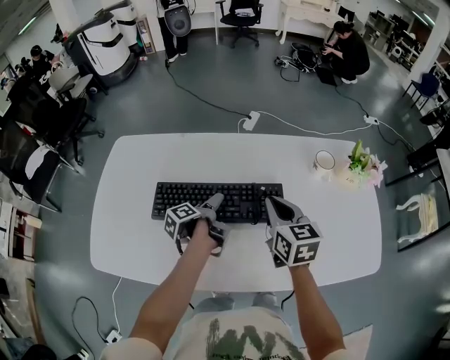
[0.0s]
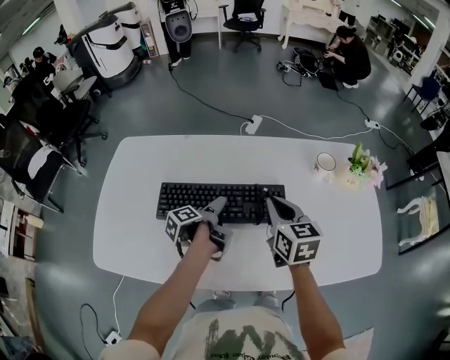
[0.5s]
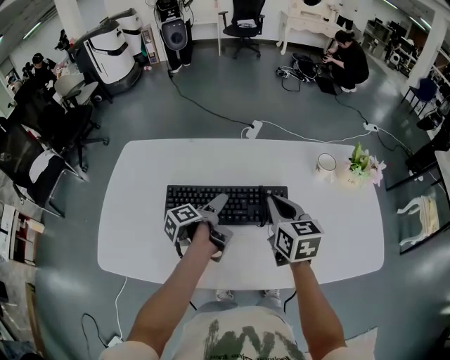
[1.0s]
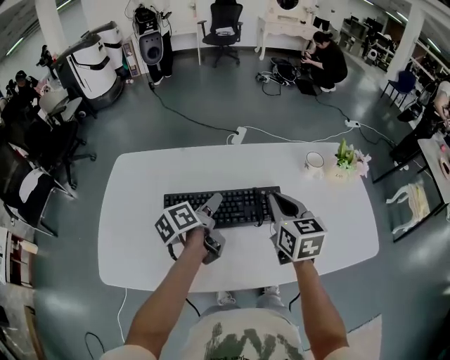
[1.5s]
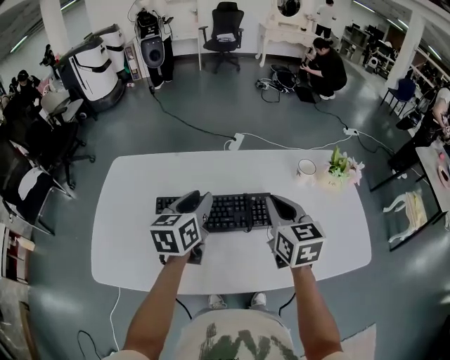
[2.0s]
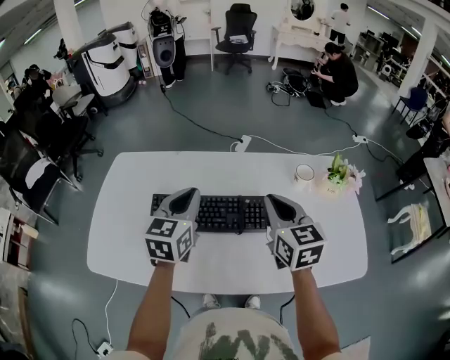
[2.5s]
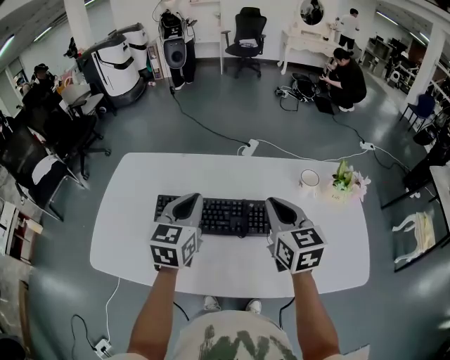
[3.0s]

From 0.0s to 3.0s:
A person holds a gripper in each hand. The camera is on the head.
From 0.0s to 1.5s: The right gripper is displaced upward by about 5 cm.
From 1.5s to 3.0s: The right gripper moves approximately 5 cm.

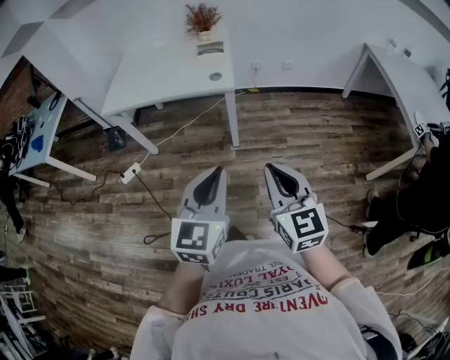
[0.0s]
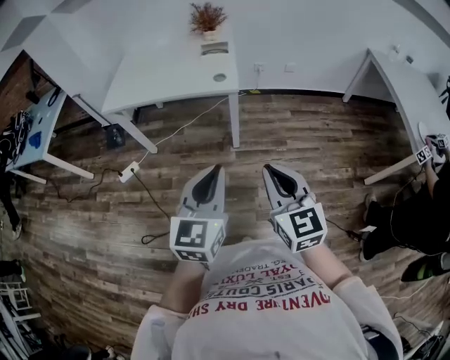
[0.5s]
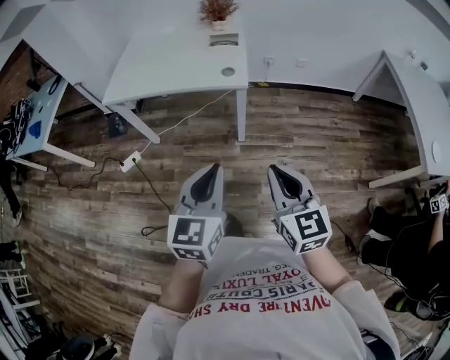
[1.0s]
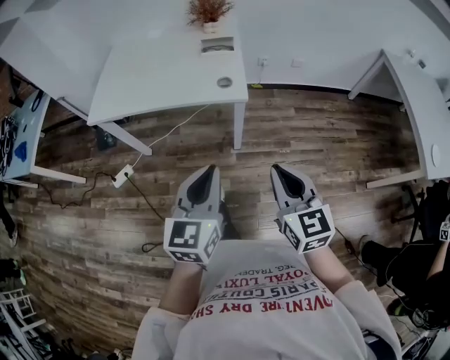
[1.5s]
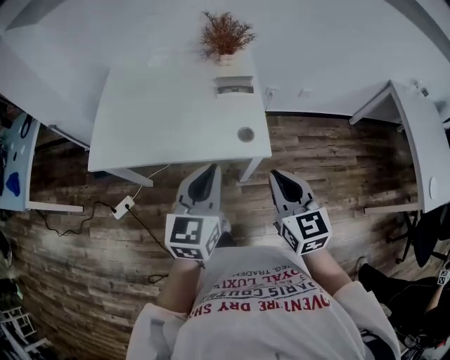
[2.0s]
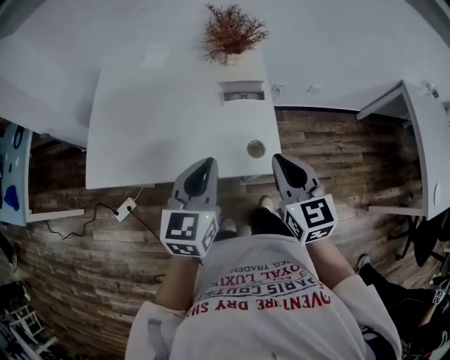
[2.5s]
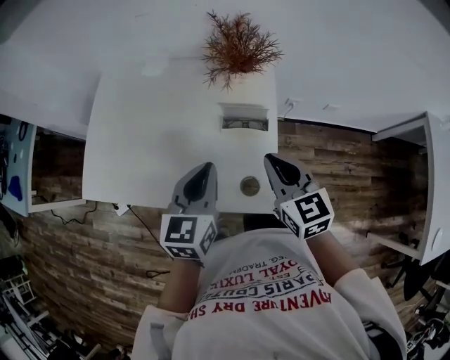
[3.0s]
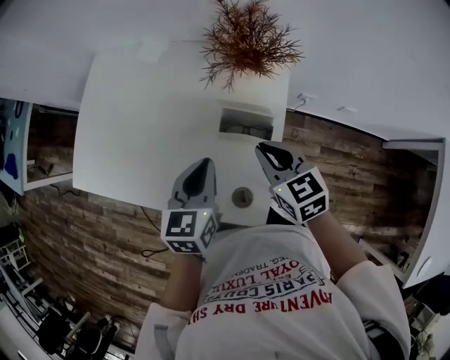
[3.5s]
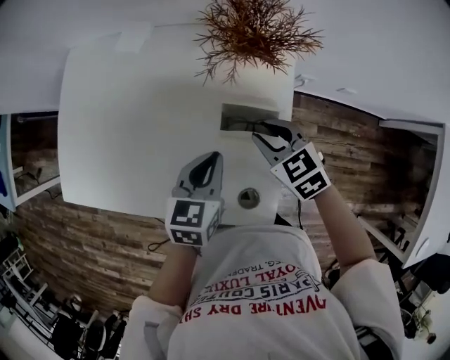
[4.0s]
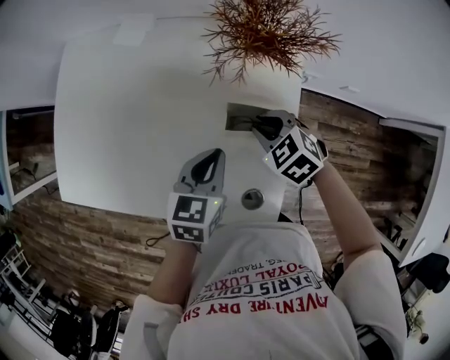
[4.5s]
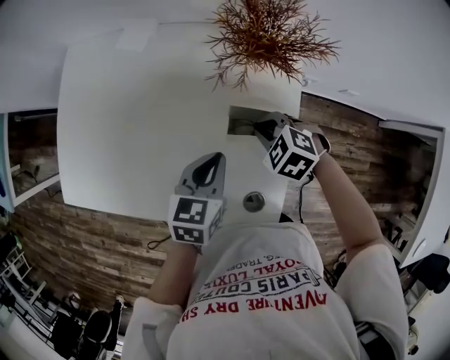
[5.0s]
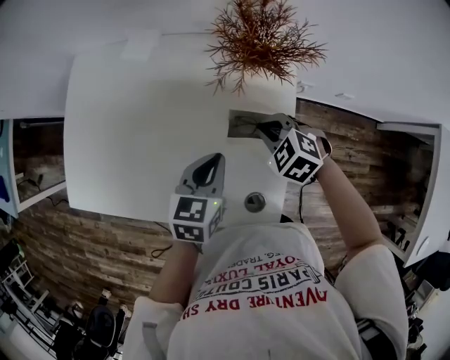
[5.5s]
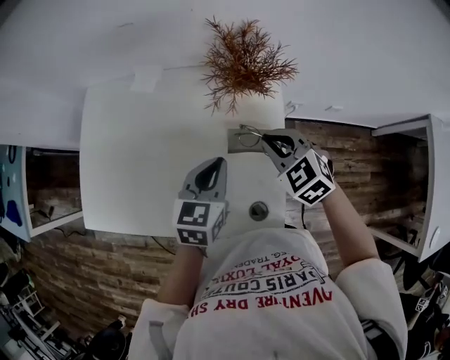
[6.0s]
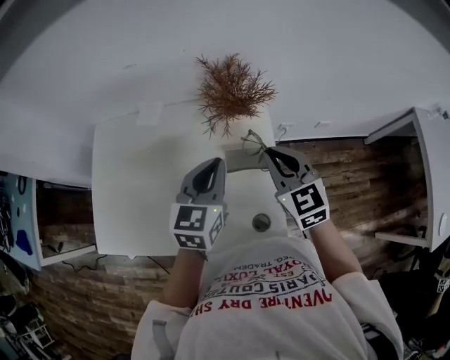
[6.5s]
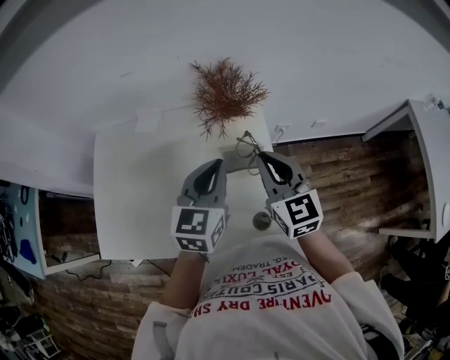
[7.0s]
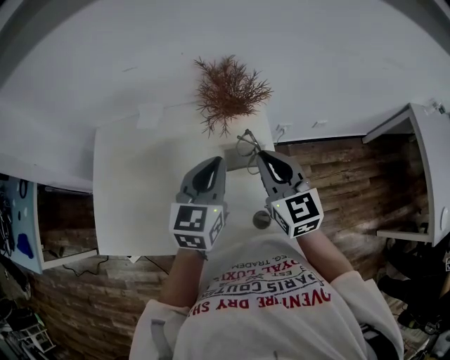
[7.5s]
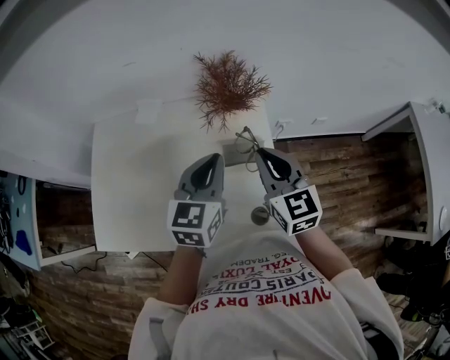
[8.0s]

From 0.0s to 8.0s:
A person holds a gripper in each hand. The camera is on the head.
From 0.0s to 2.0s: The pair of grippers is taken forward, roughly 40 cm.
From 2.0s to 4.0s: The grippers both shift forward and downward by approximately 40 cm. The right gripper changes its angle by some 40 degrees, and opens up. The left gripper rotates some 30 degrees.
From 4.0s to 6.0s: Both grippers travel together upward, about 10 cm. The right gripper closes.
From 6.0s to 8.0s: The left gripper heads upward, covering about 10 cm; the right gripper travels upward and backward by about 10 cm, and changes its angle by some 40 degrees.

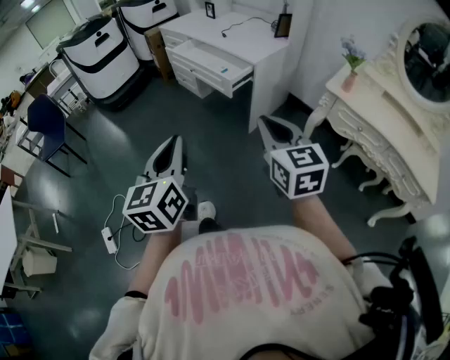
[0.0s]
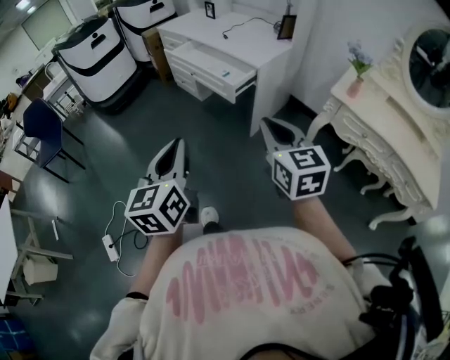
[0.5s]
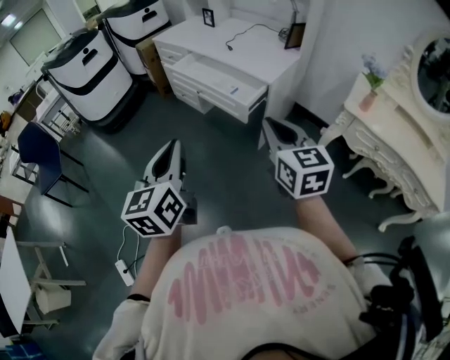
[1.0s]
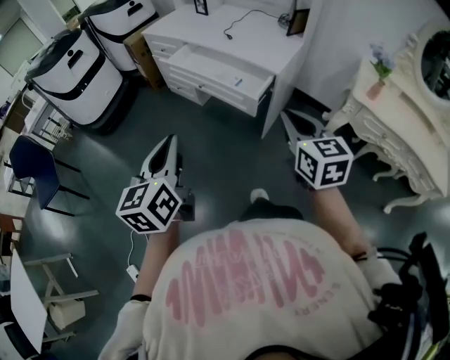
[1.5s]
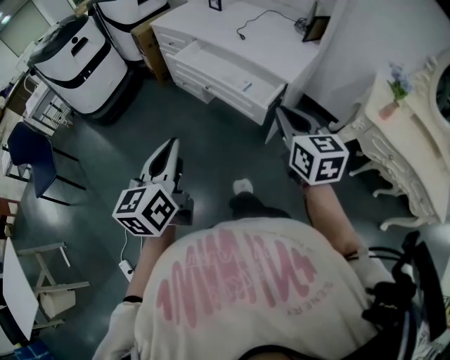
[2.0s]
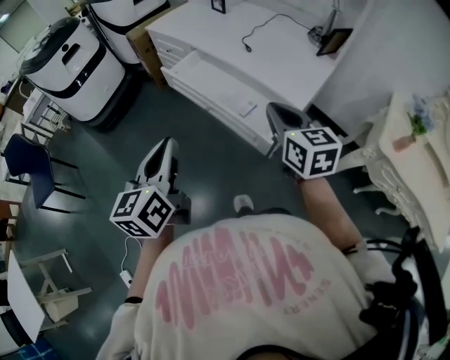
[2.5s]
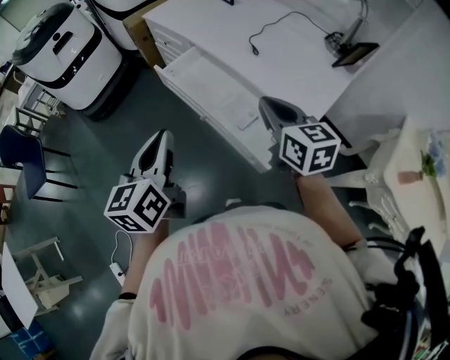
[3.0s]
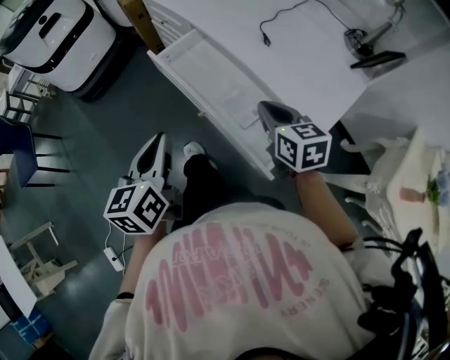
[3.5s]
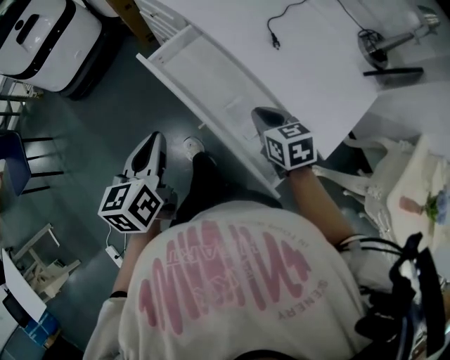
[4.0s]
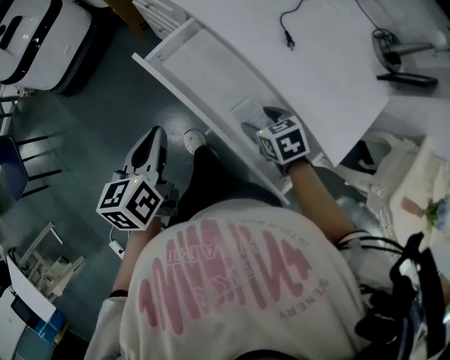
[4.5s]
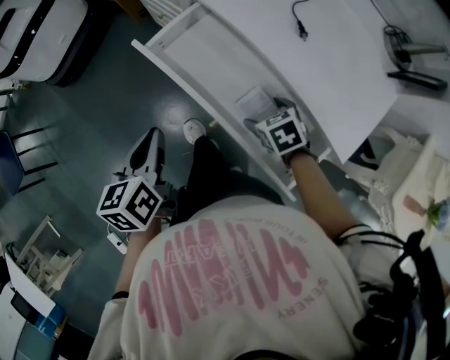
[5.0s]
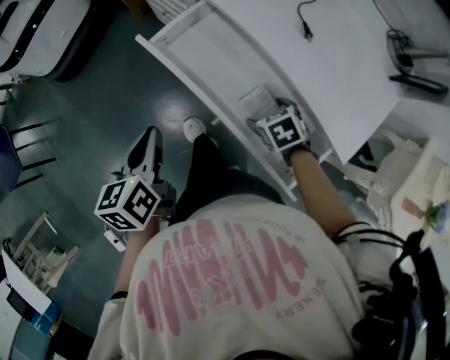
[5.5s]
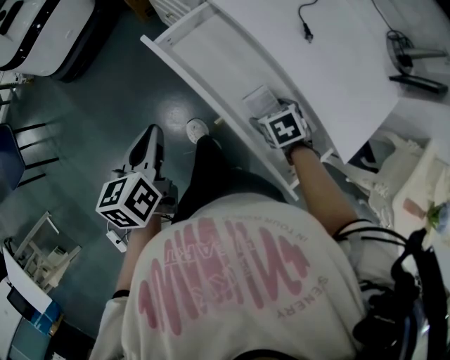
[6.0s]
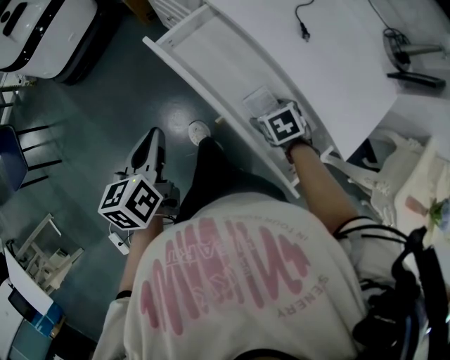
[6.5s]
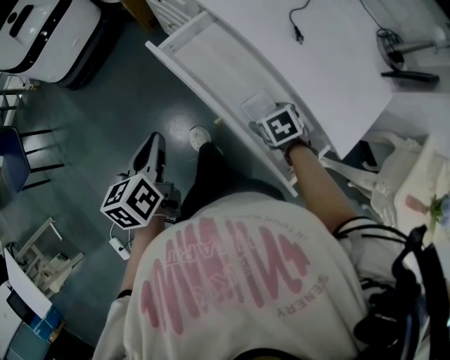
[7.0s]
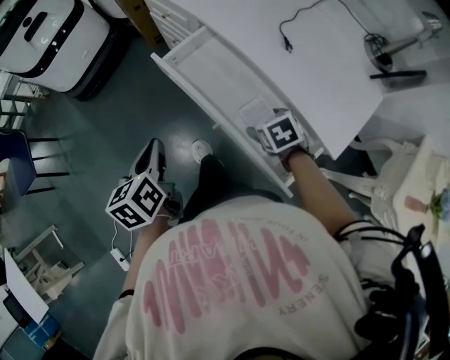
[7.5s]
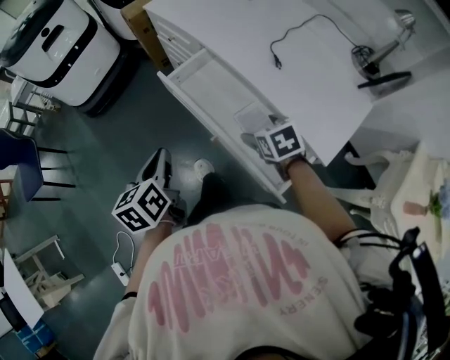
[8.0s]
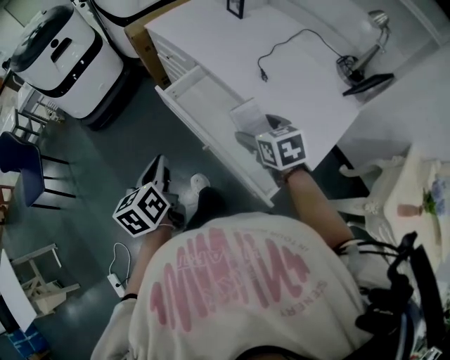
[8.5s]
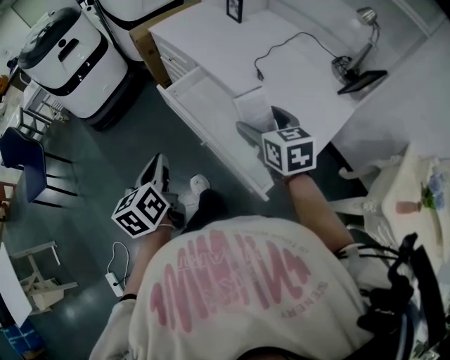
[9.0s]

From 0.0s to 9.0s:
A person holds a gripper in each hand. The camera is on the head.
From 0.0s to 2.0s: The left gripper moves forward and to the left, roughly 35 cm; the right gripper heads forward, covering about 30 cm.
From 2.0s to 4.5s: Both grippers travel together forward and downward, approximately 50 cm. The left gripper swivels roughly 30 degrees, while the right gripper angles its fingers downward, by about 40 degrees, and opens up.
From 4.5s to 7.0s: The left gripper changes place by some 5 cm.
From 7.0s to 9.0s: The right gripper shifts roughly 25 cm upward, and points its fingers approximately 40 degrees further upward. The left gripper goes roughly 10 cm upward.

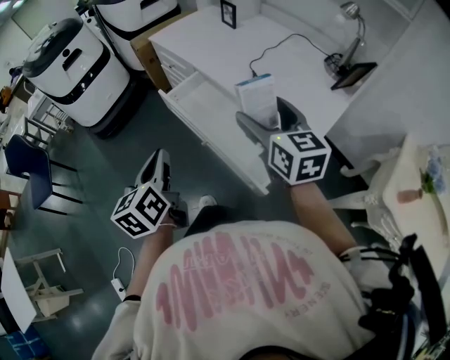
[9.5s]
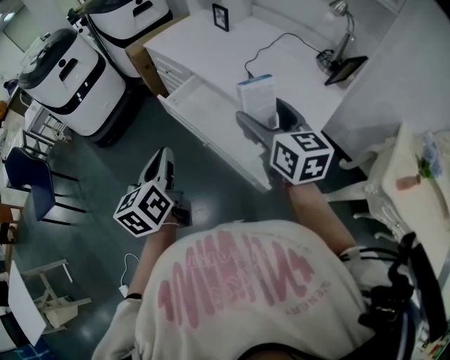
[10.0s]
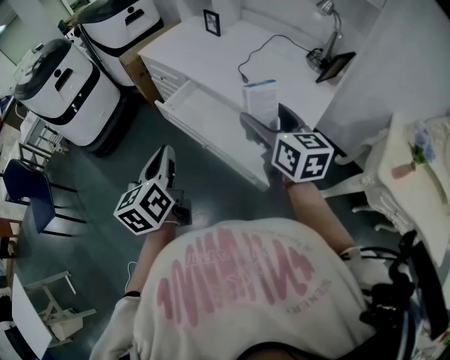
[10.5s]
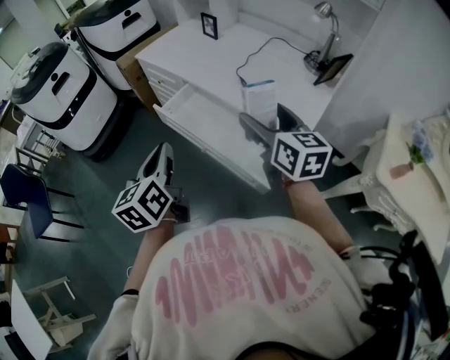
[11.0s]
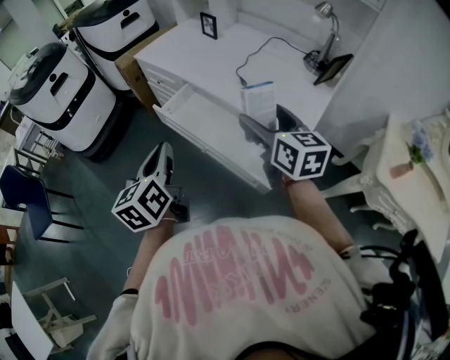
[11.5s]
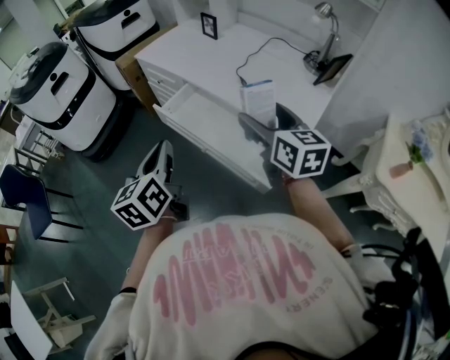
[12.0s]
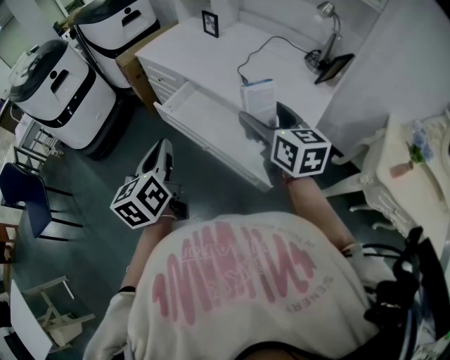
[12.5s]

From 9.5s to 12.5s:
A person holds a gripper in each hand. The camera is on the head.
From 9.5s to 11.0s: The grippers move only a little.
From 11.0s to 12.5s: Both grippers stay about where they are.

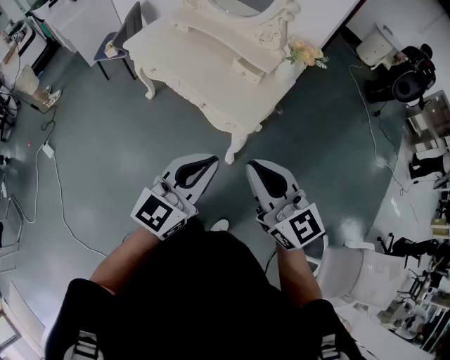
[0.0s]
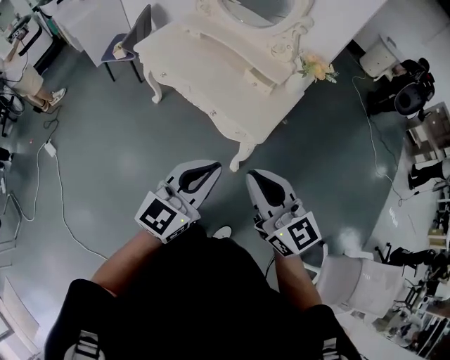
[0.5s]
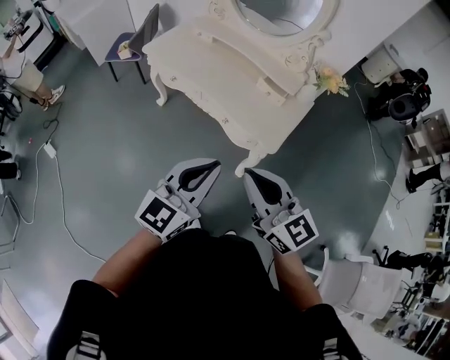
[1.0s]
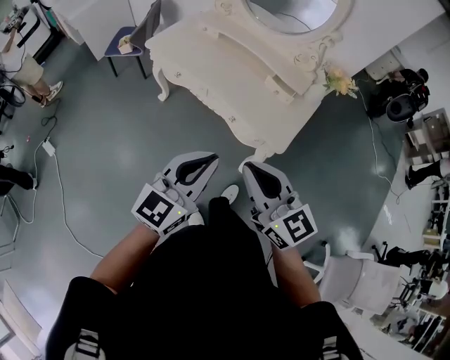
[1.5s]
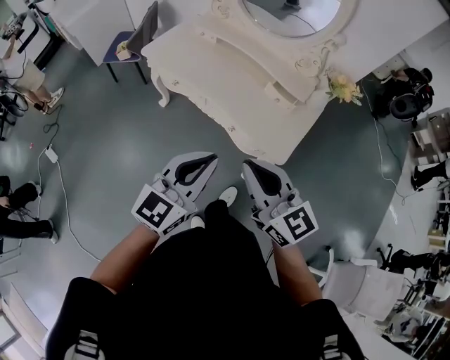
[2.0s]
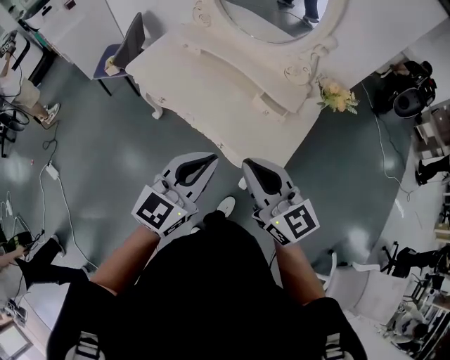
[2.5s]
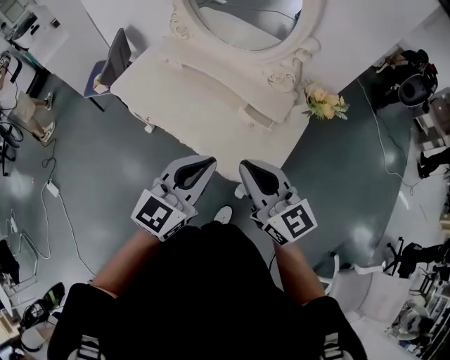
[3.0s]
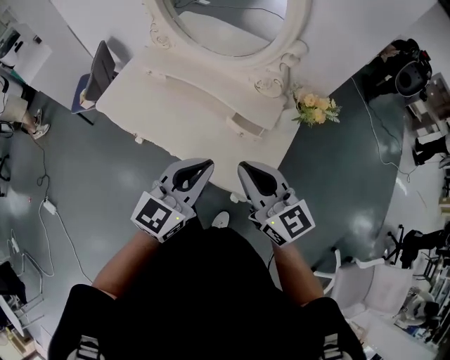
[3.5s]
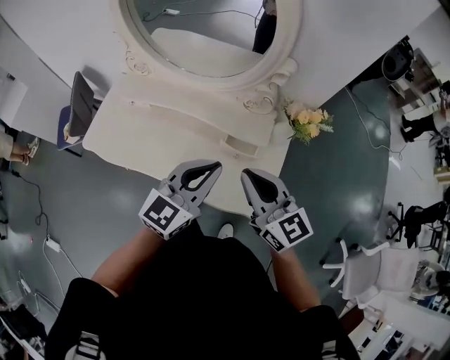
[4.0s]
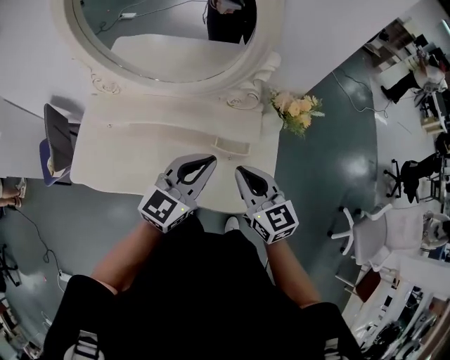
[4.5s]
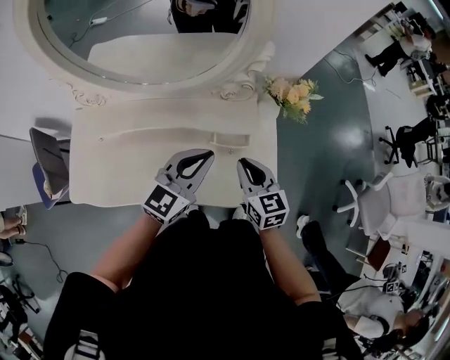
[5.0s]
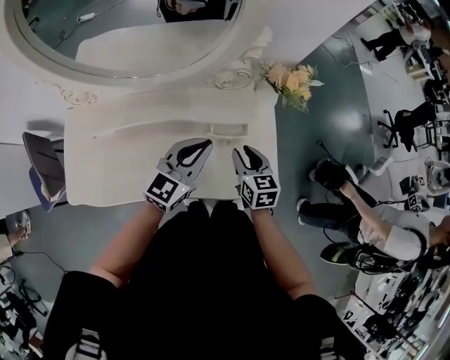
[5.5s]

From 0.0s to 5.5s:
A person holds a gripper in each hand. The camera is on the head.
From 0.0s to 2.0s: The grippers both shift to the left and forward by about 20 cm.
From 2.0s to 3.5s: The two grippers go some 25 cm forward and to the right.
From 3.5s to 5.5s: The right gripper shifts roughly 25 cm downward, tips its fingers downward by roughly 30 degrees, and opens up. Meanwhile the left gripper shifts by some 25 cm, and rotates approximately 30 degrees.
